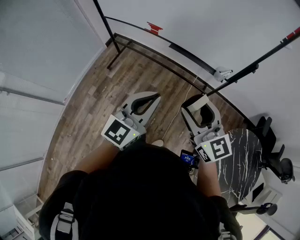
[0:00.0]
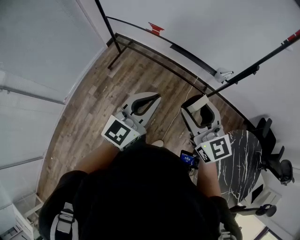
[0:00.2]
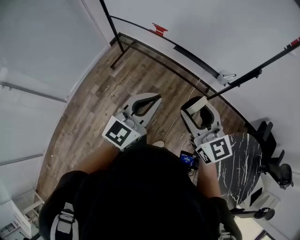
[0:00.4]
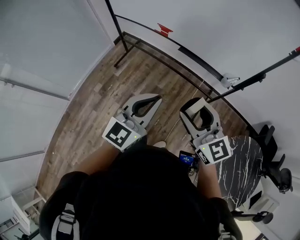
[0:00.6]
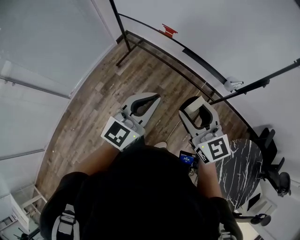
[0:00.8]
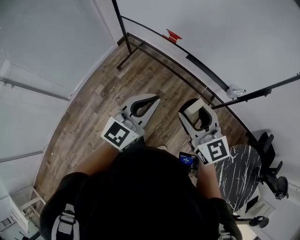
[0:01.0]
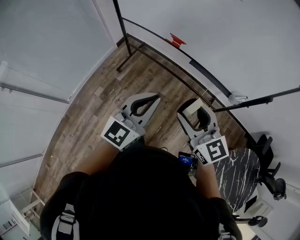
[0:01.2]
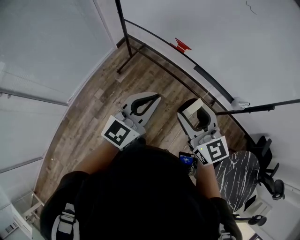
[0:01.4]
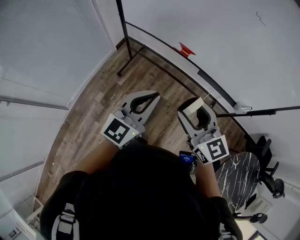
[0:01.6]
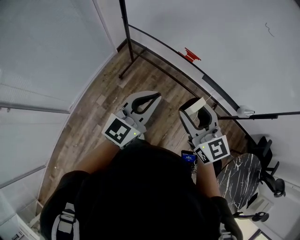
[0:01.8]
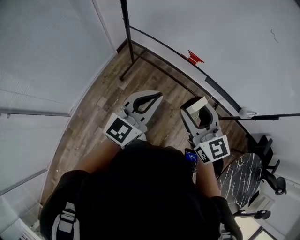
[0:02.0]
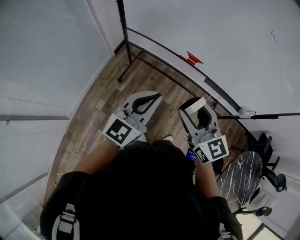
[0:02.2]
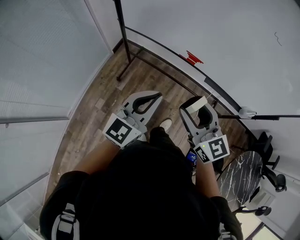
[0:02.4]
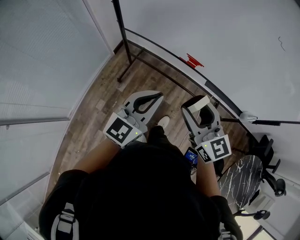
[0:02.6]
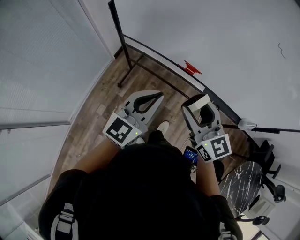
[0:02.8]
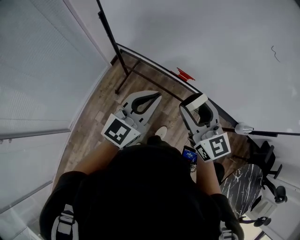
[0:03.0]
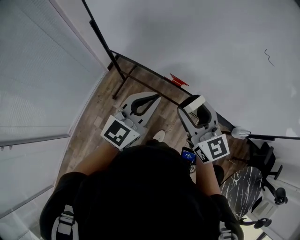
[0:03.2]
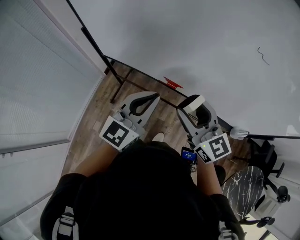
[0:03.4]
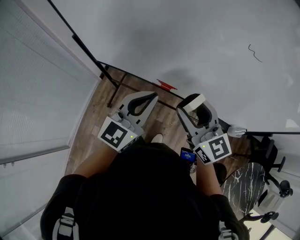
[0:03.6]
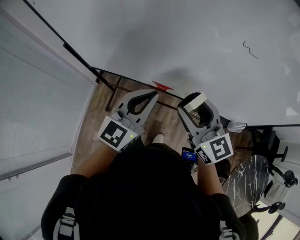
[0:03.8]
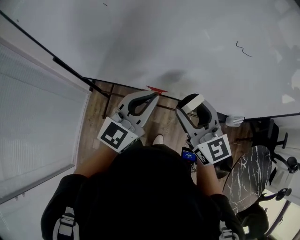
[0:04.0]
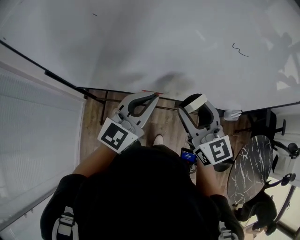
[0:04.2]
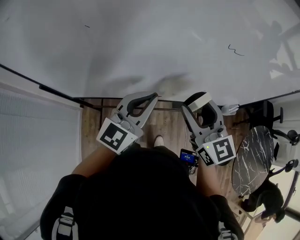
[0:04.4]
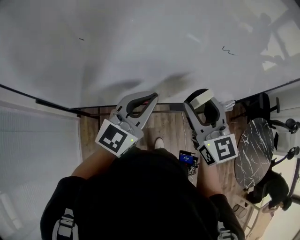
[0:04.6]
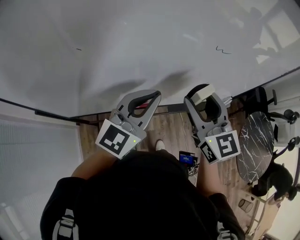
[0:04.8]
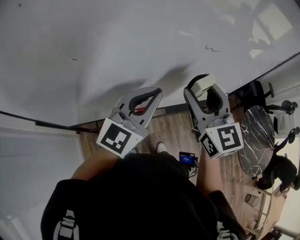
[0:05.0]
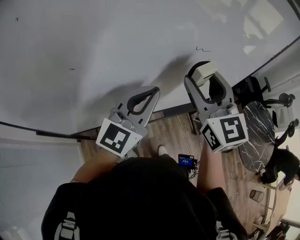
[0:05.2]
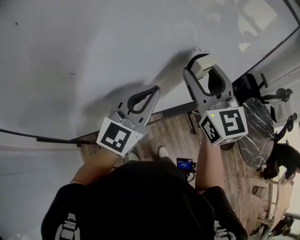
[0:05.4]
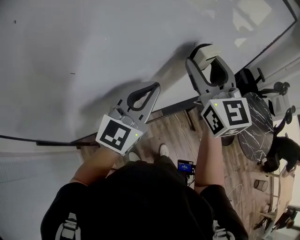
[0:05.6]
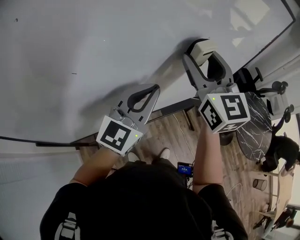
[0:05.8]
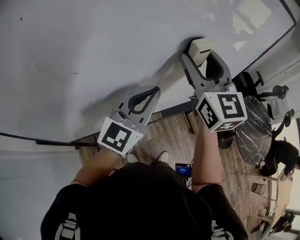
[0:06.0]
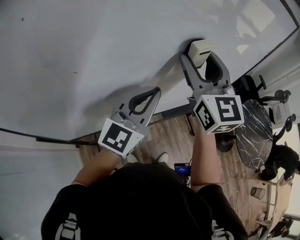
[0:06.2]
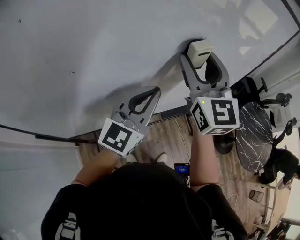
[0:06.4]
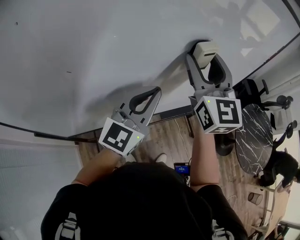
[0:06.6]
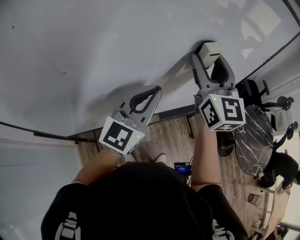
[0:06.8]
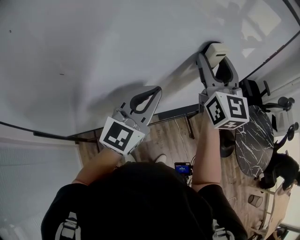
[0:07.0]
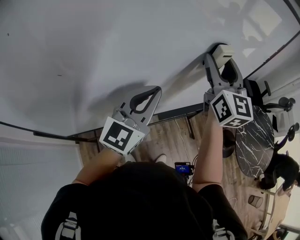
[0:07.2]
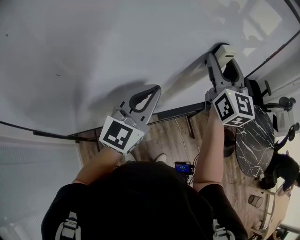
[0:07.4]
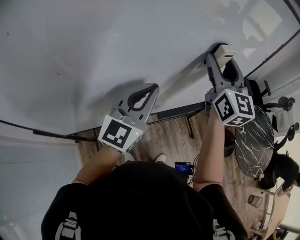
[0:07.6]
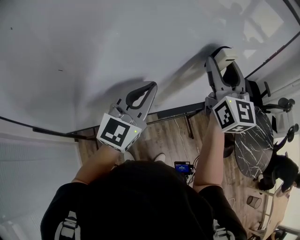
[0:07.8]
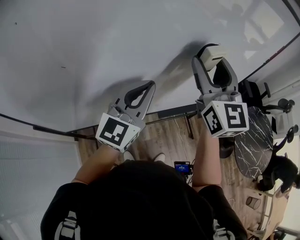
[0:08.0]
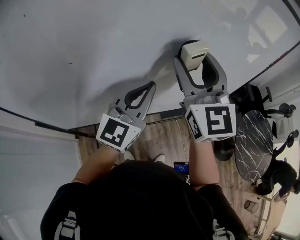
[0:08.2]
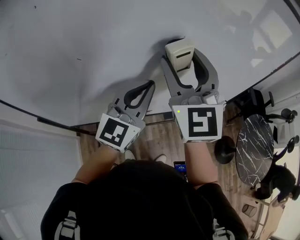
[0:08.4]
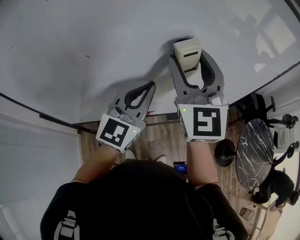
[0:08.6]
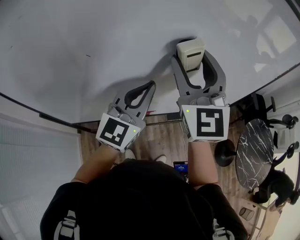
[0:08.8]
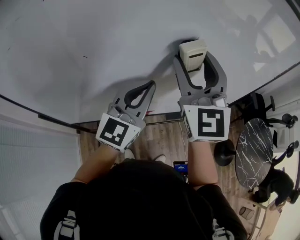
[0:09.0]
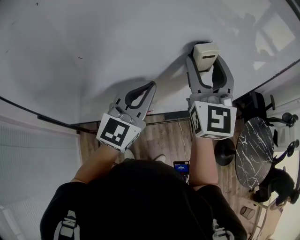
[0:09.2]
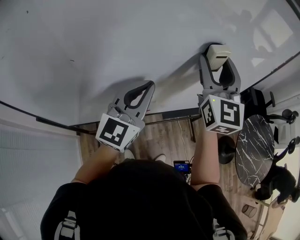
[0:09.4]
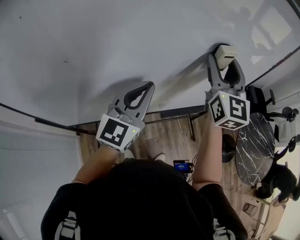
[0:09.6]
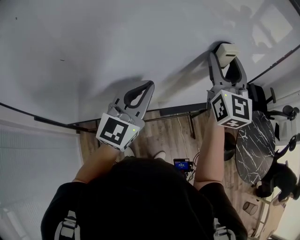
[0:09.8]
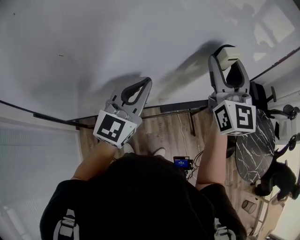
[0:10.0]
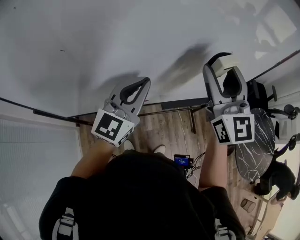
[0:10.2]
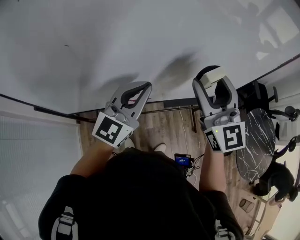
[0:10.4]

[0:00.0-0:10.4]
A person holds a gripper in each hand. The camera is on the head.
0:00.0 to 0:01.4: The grippers both shift to the left and forward by roughly 25 cm.
0:01.4 to 0:03.0: The two grippers go roughly 25 cm forward.
0:03.0 to 0:04.4: The right gripper changes place by roughly 15 cm, and turns by approximately 30 degrees; the left gripper changes place by about 20 cm, and swivels roughly 30 degrees.
0:04.4 to 0:06.0: The left gripper goes approximately 10 cm upward; the right gripper shifts about 20 cm upward and forward, and rotates some 30 degrees.
0:06.0 to 0:07.4: The right gripper travels to the right and forward by approximately 15 cm, while the left gripper shifts by some 5 cm.
0:07.4 to 0:09.0: The left gripper is displaced to the left by approximately 5 cm. Meanwhile the right gripper goes some 20 cm to the left and backward, and rotates roughly 20 degrees.
0:09.0 to 0:10.4: The left gripper goes roughly 5 cm downward; the right gripper goes about 15 cm to the right and downward.

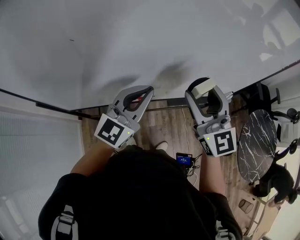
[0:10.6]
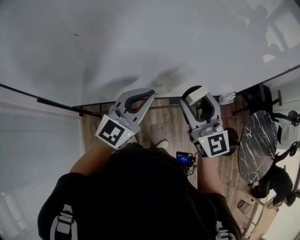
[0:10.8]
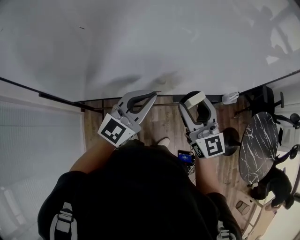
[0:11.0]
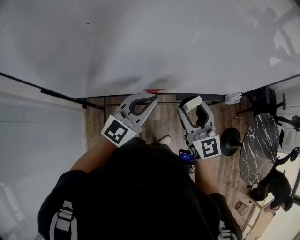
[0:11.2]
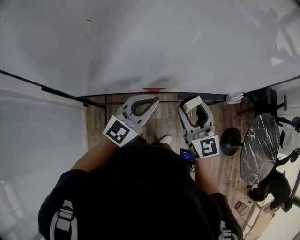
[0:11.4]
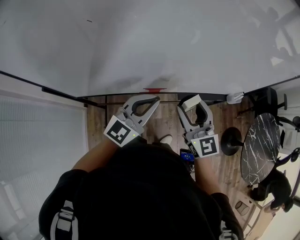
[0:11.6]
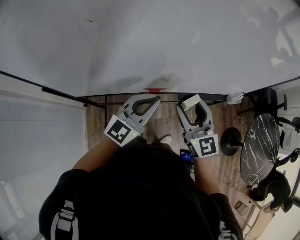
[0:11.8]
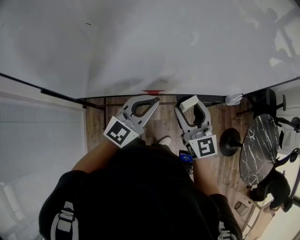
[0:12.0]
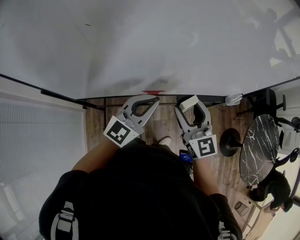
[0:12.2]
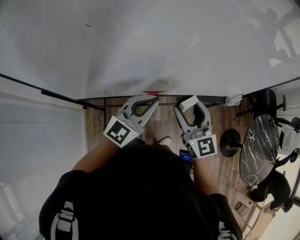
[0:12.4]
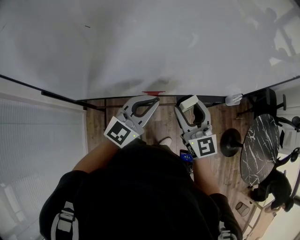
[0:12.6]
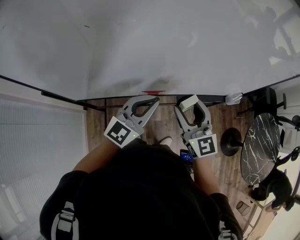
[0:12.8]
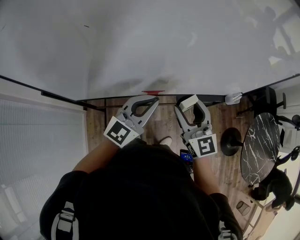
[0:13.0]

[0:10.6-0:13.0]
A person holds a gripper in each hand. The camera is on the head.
0:10.6 to 0:11.8: The left gripper is displaced downward by roughly 5 cm; the right gripper shifts roughly 10 cm downward.
0:11.8 to 0:13.0: Neither gripper changes place.

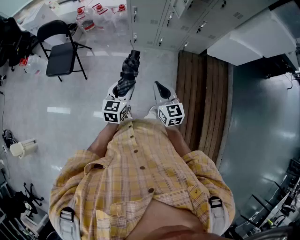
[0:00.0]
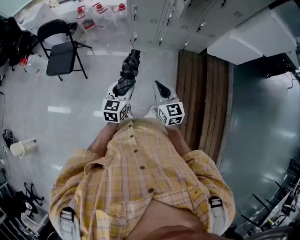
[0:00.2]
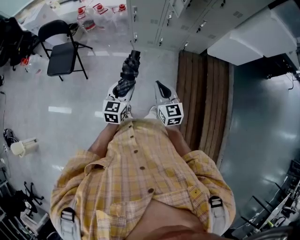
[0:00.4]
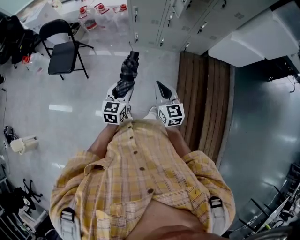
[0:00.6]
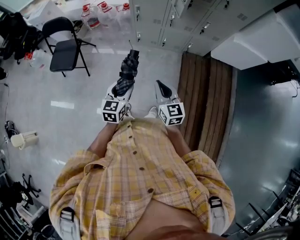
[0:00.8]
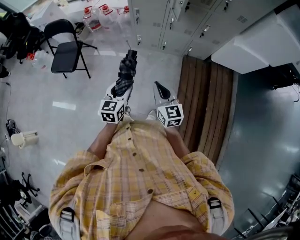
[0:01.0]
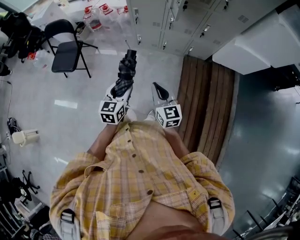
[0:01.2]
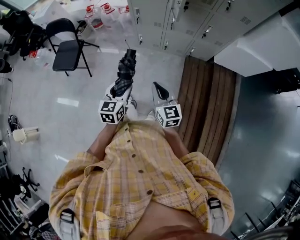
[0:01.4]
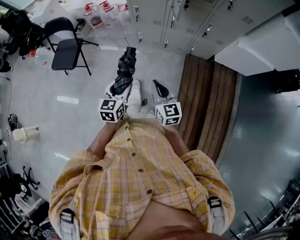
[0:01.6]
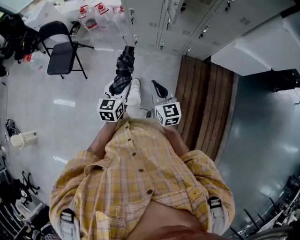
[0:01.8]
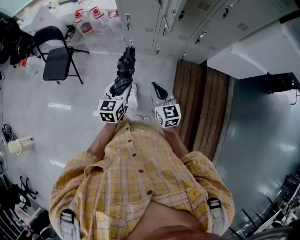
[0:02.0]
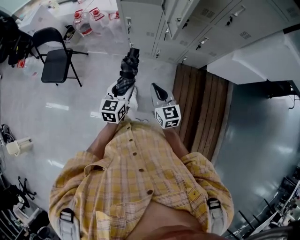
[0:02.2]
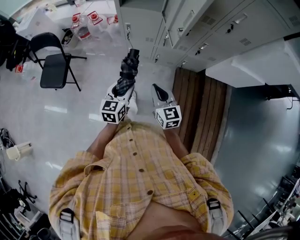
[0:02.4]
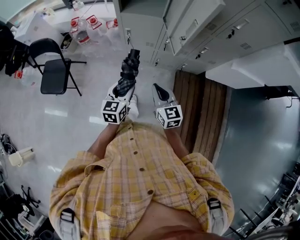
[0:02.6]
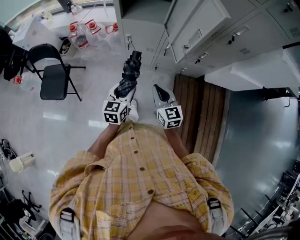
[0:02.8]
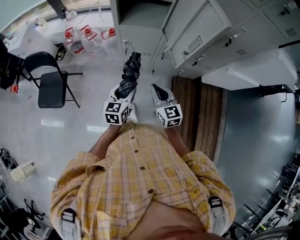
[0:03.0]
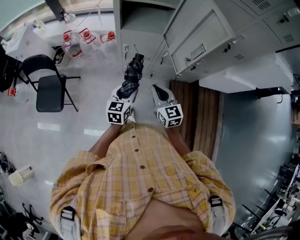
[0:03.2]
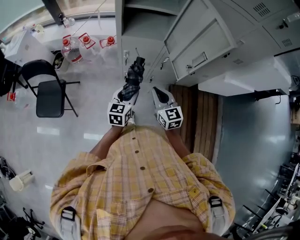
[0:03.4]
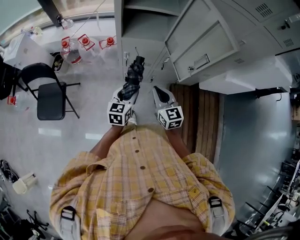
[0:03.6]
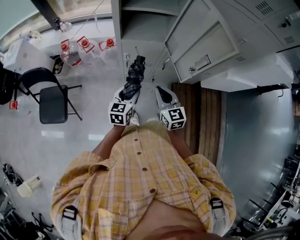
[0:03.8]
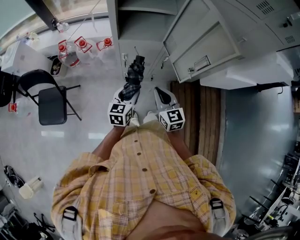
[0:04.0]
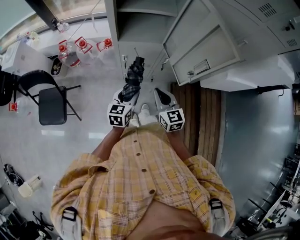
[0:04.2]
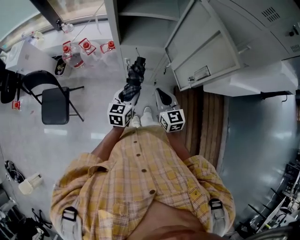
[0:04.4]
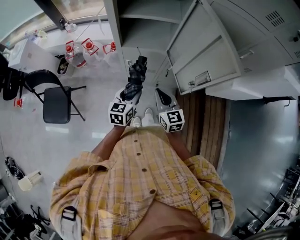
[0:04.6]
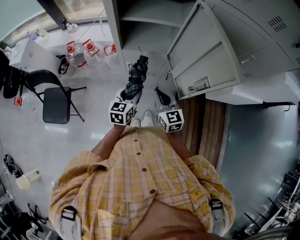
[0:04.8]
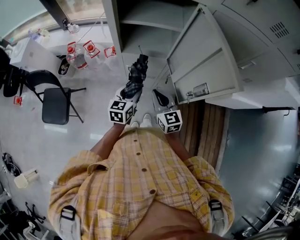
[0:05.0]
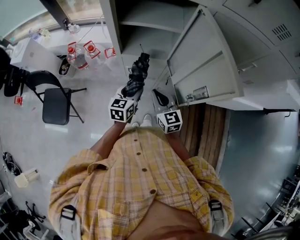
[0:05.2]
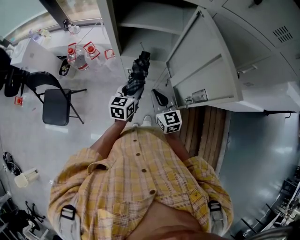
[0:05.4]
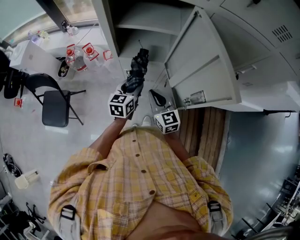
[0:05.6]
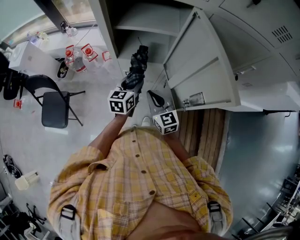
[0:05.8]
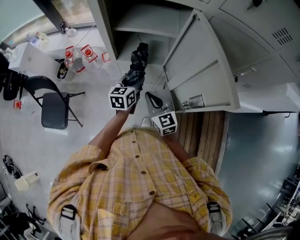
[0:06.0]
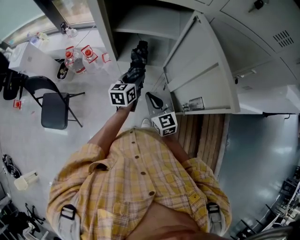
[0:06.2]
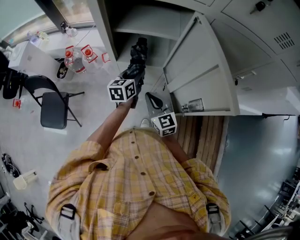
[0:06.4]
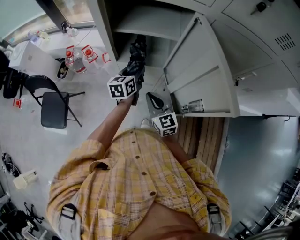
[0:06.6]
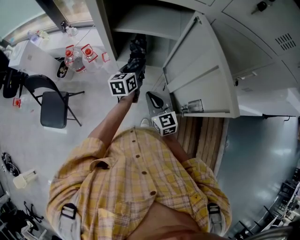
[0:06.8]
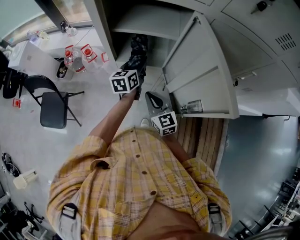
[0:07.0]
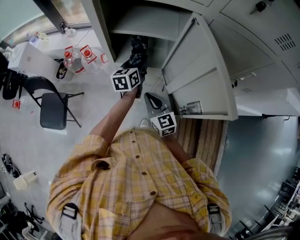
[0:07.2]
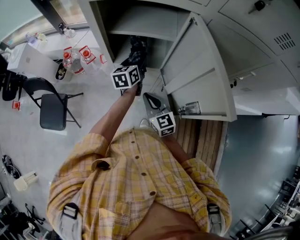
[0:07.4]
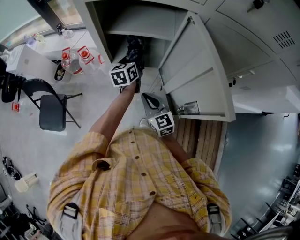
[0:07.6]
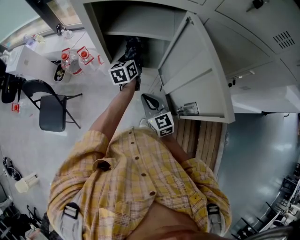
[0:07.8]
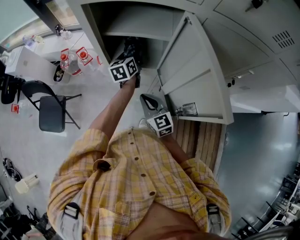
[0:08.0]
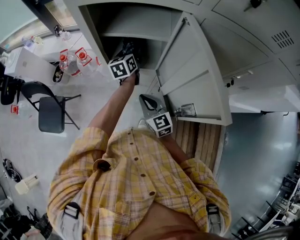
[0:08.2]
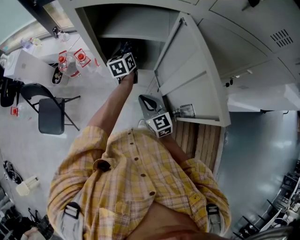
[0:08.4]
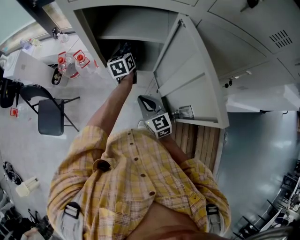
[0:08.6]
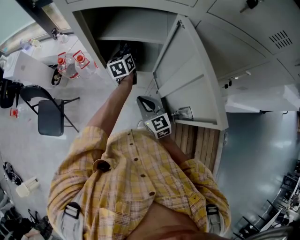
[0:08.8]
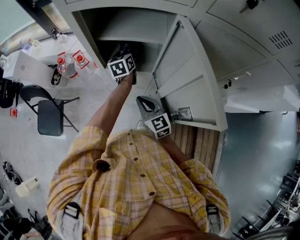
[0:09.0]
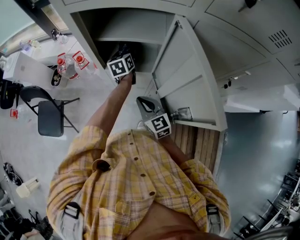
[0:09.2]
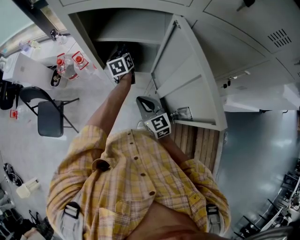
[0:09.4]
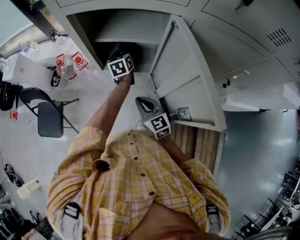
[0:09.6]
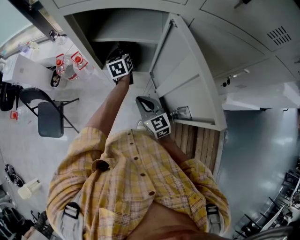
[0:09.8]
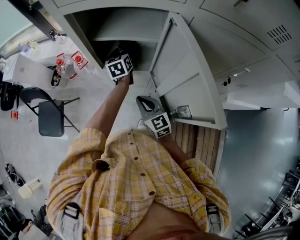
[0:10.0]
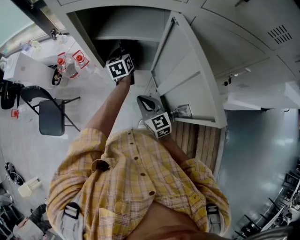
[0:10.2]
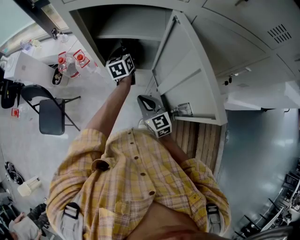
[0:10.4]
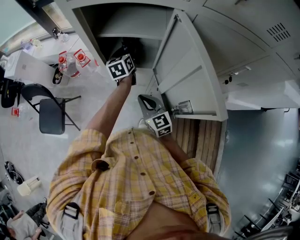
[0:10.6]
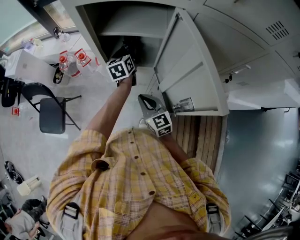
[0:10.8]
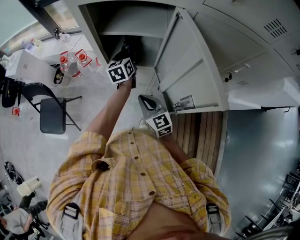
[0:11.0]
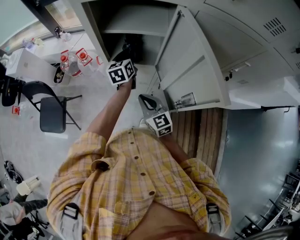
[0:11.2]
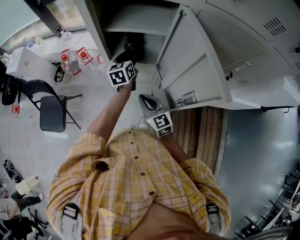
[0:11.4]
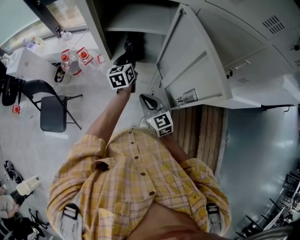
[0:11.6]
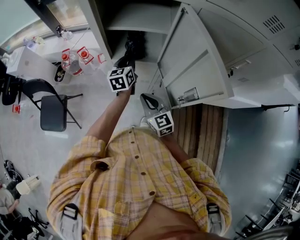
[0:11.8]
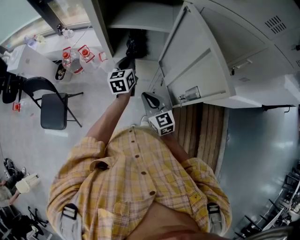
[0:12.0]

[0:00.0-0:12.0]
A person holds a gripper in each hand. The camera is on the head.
0:00.0 to 0:01.6: The right gripper shifts some 10 cm to the right and forward. The left gripper travels to the right by approximately 10 cm.
0:01.6 to 0:03.0: Both grippers move forward, about 30 cm.
0:03.0 to 0:04.4: The grippers both shift forward by roughly 10 cm.
0:04.4 to 0:06.0: The left gripper goes approximately 15 cm forward. Meanwhile the right gripper heads forward, covering about 10 cm.
0:06.0 to 0:07.6: The left gripper goes approximately 10 cm forward.
0:07.6 to 0:09.0: The left gripper travels forward by roughly 5 cm.
0:09.0 to 0:10.4: There are only small adjustments of the grippers.
0:10.4 to 0:12.0: The left gripper goes approximately 10 cm backward, and closes.
